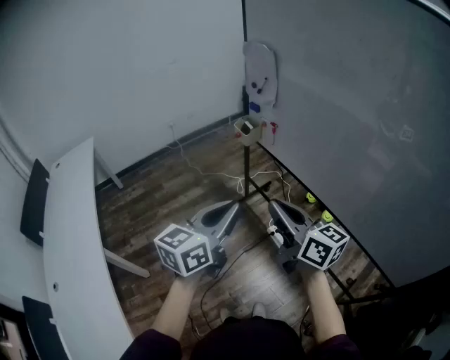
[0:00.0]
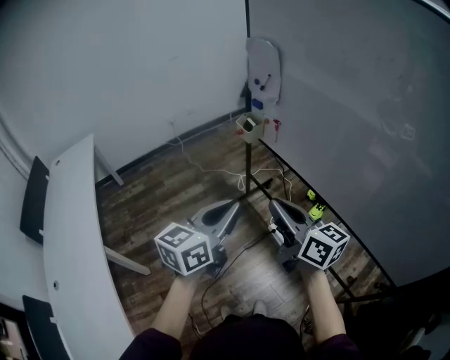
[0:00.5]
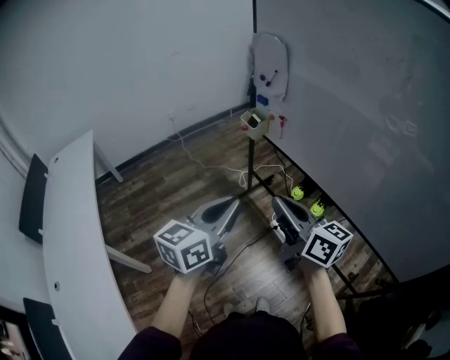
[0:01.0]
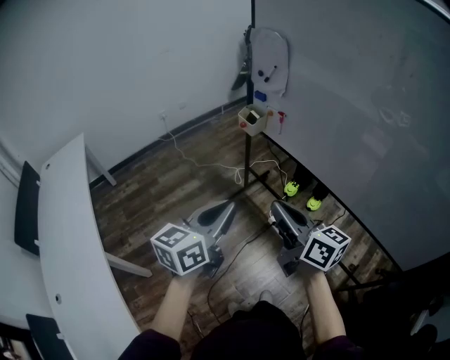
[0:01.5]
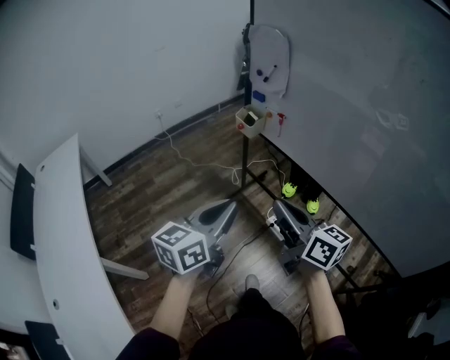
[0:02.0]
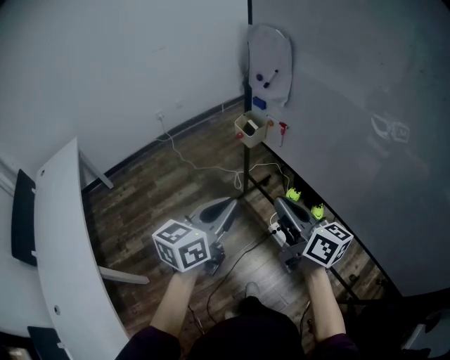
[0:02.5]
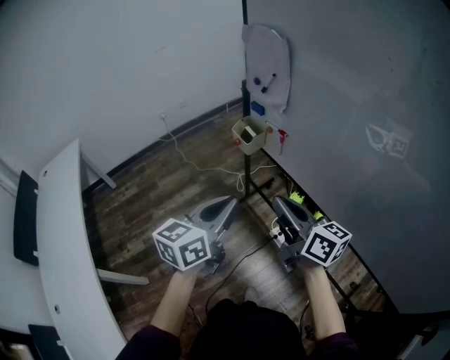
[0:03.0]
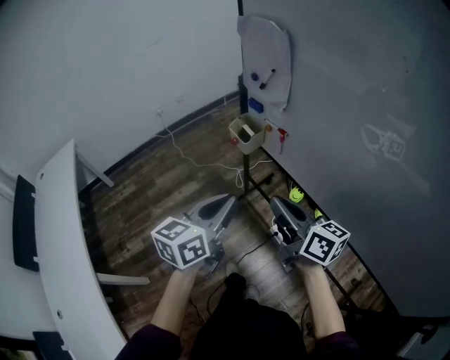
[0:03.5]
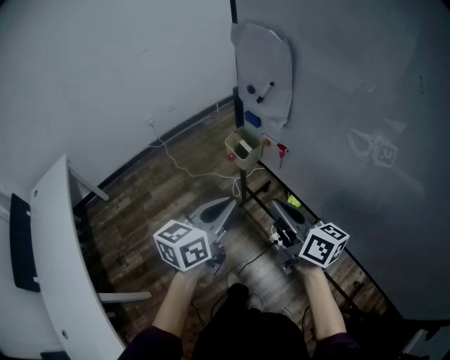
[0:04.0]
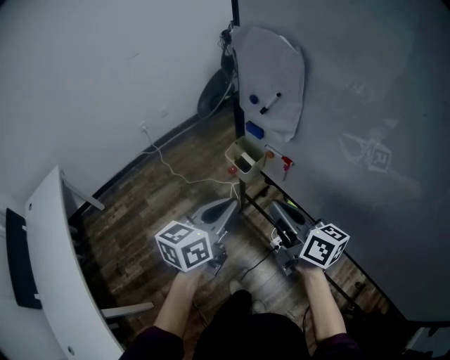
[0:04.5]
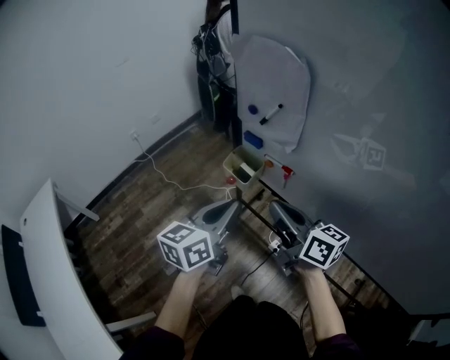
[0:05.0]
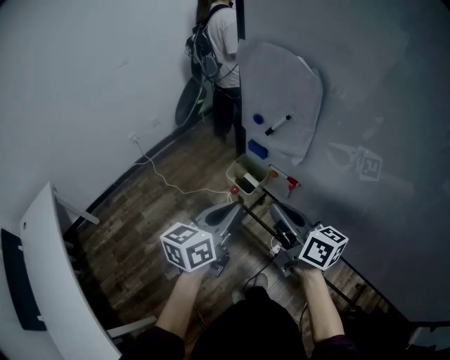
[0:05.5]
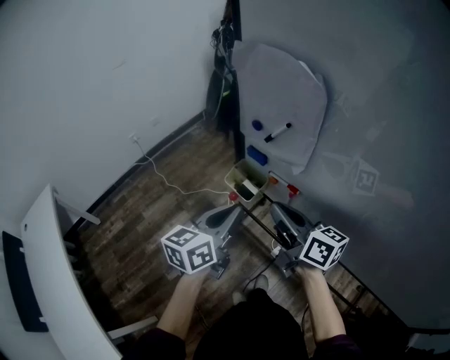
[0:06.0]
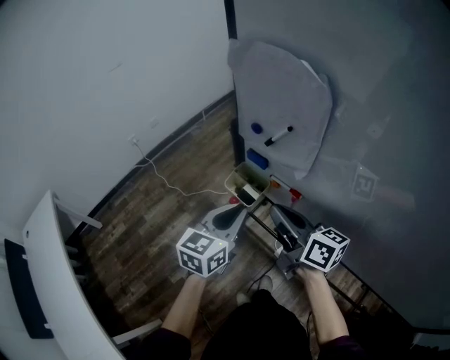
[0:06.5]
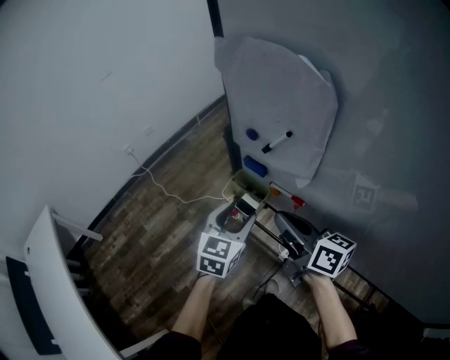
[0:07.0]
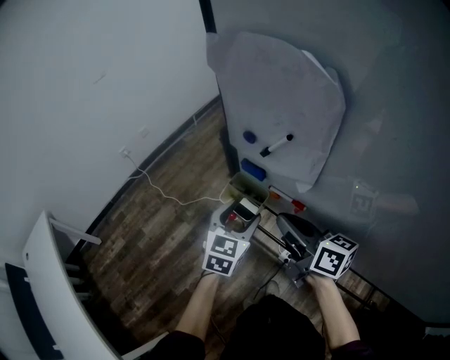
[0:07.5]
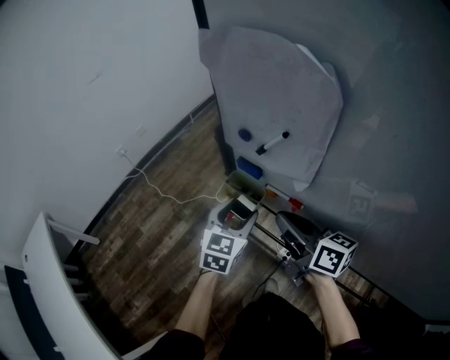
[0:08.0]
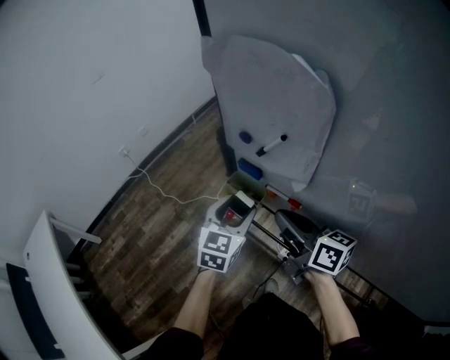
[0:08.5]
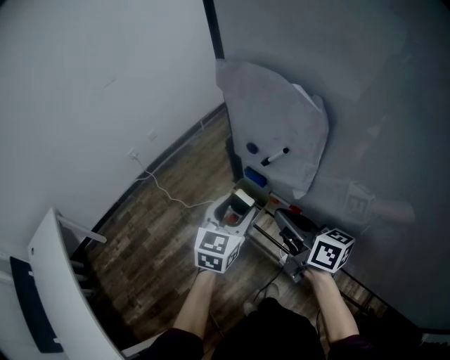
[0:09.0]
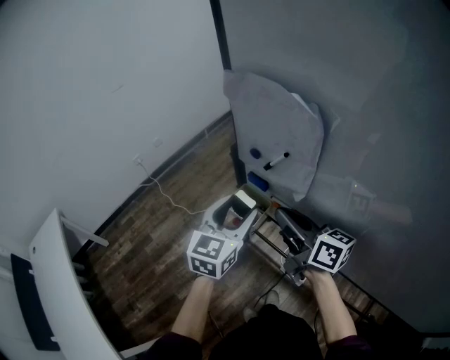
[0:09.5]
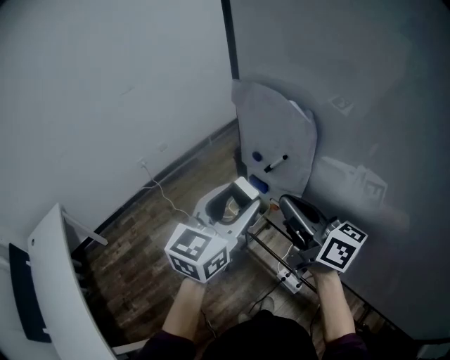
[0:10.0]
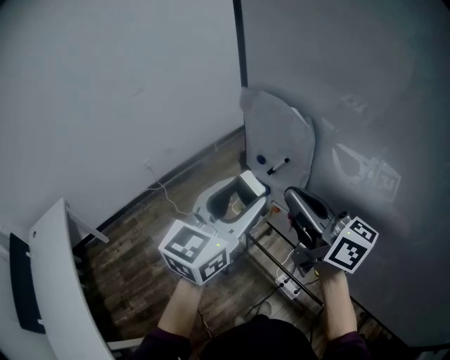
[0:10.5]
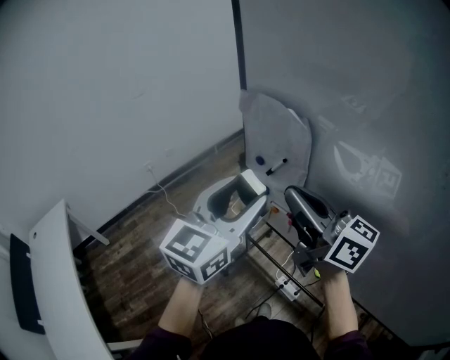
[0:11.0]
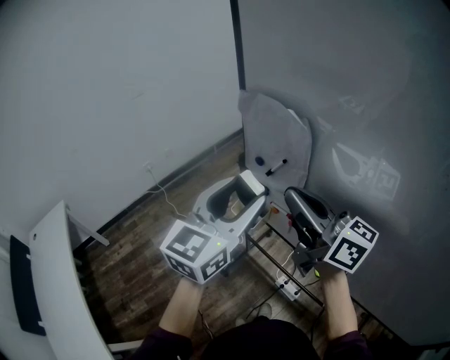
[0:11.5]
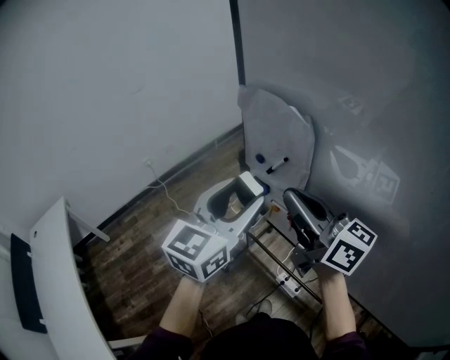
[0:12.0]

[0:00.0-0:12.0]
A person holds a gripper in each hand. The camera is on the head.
0:00.0 to 0:02.0: The right gripper goes roughly 5 cm to the left. Meanwhile the left gripper goes roughly 10 cm to the left and forward.
0:02.0 to 0:04.0: Both grippers move forward, about 25 cm.
0:04.0 to 0:06.0: Both grippers move forward, about 15 cm.
0:06.0 to 0:08.0: The left gripper travels downward and forward by some 15 cm, turns by approximately 30 degrees, and opens its fingers, while the right gripper moves downward, roughly 5 cm.
0:08.0 to 0:10.0: Both grippers move upward, roughly 20 cm. The left gripper swivels some 20 degrees.
0:10.0 to 0:12.0: The right gripper shifts about 5 cm upward.

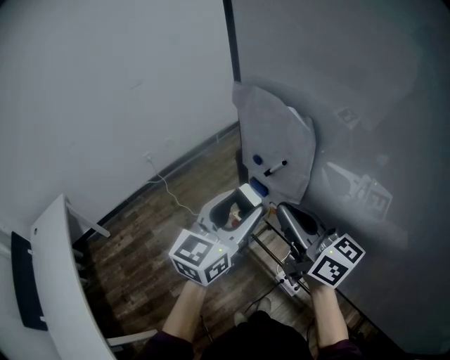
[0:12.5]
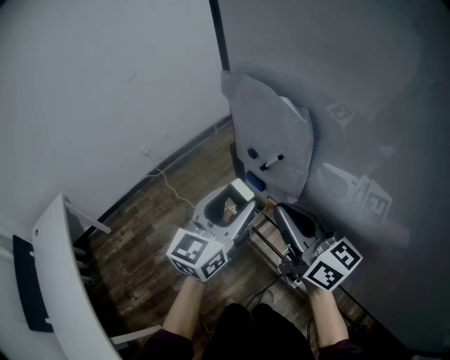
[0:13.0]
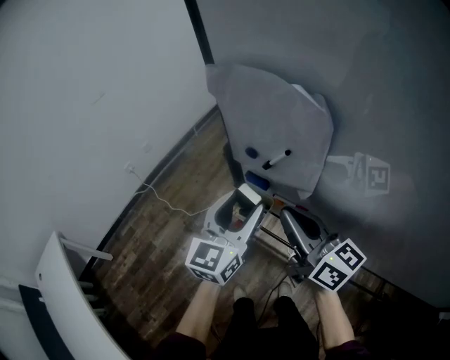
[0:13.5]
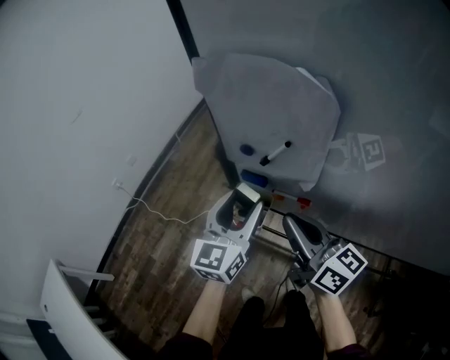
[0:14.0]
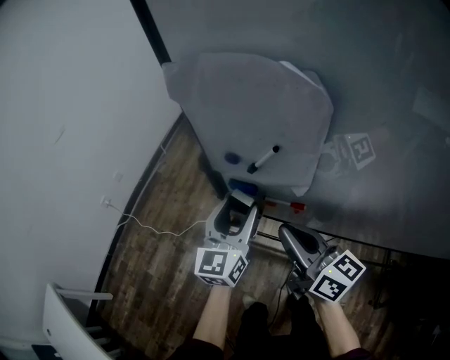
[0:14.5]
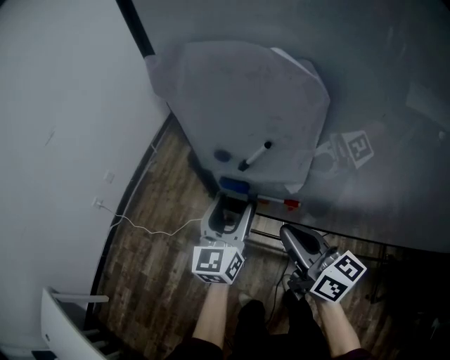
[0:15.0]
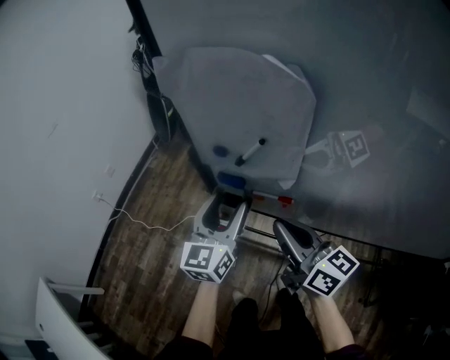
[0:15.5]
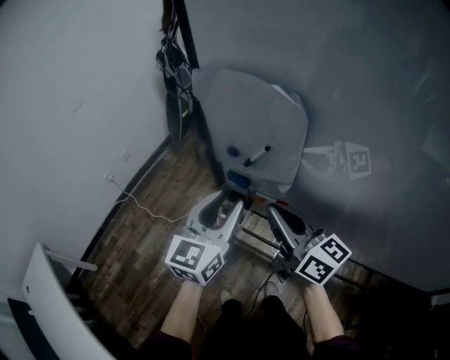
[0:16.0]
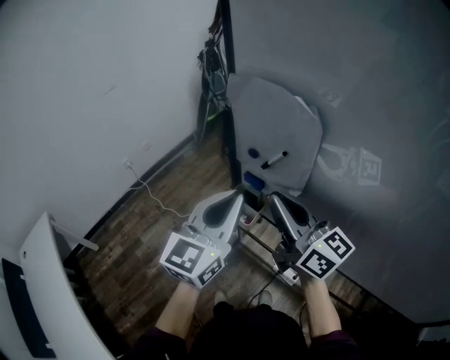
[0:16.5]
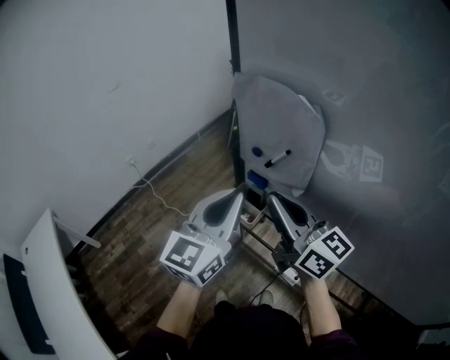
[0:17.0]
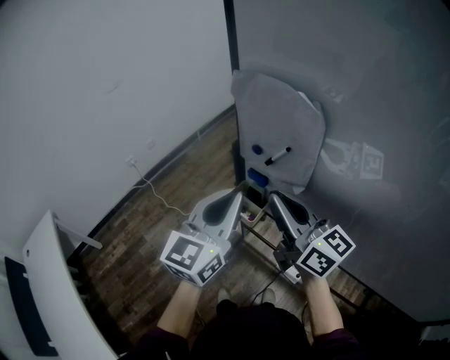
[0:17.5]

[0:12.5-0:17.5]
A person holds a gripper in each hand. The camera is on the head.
0:12.5 to 0:15.0: The right gripper is displaced downward by roughly 15 cm, and swivels some 30 degrees. Meanwhile the left gripper travels downward and forward by about 20 cm.
0:15.0 to 0:17.5: The left gripper moves upward and backward, about 20 cm, and closes up; the right gripper shifts some 15 cm upward, and swivels roughly 20 degrees.

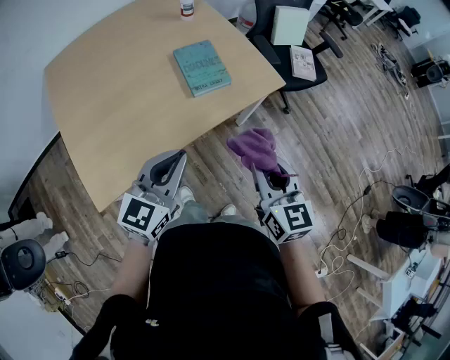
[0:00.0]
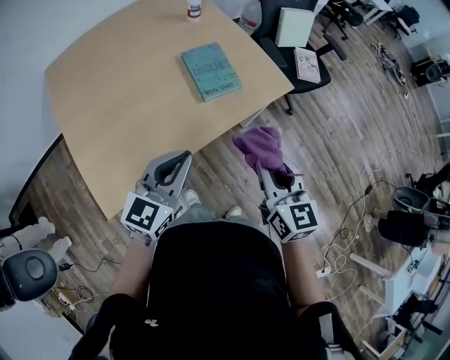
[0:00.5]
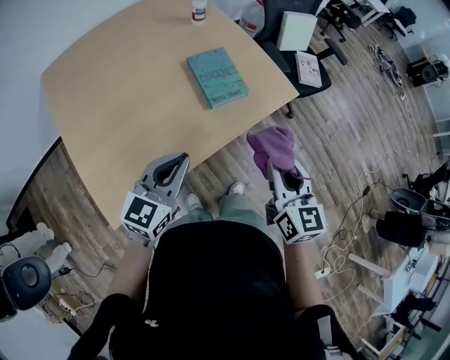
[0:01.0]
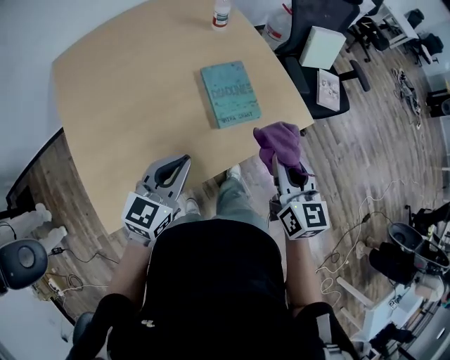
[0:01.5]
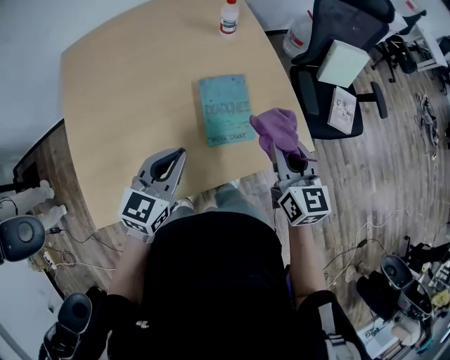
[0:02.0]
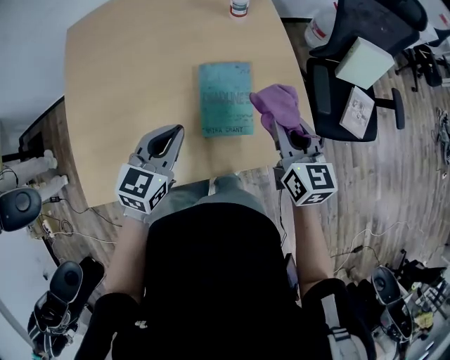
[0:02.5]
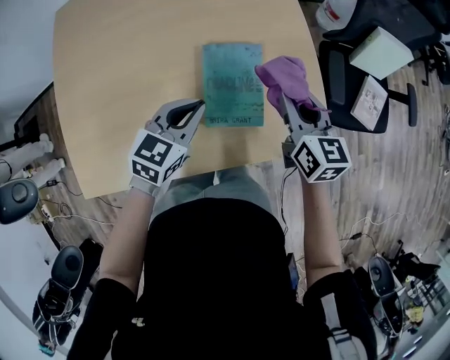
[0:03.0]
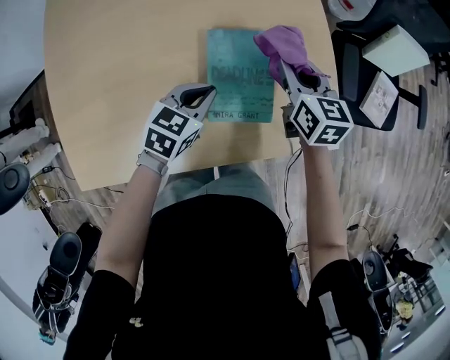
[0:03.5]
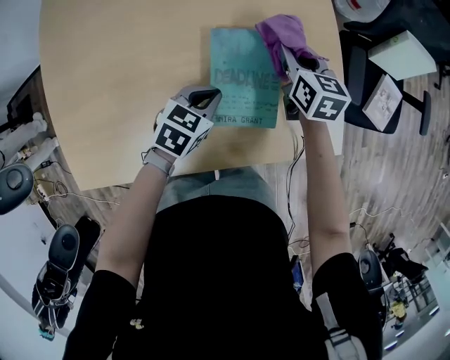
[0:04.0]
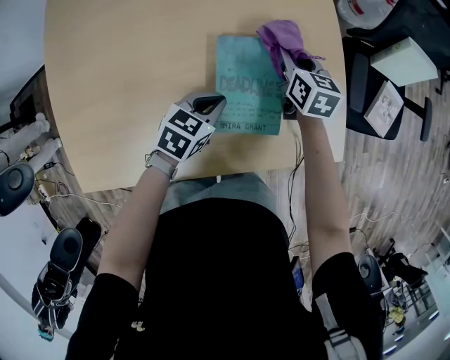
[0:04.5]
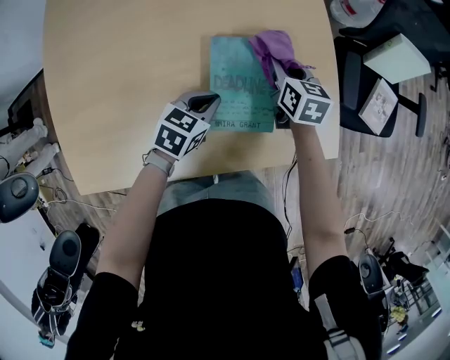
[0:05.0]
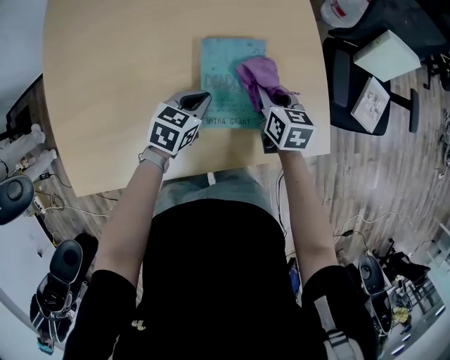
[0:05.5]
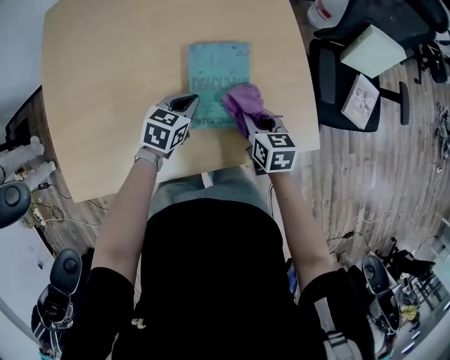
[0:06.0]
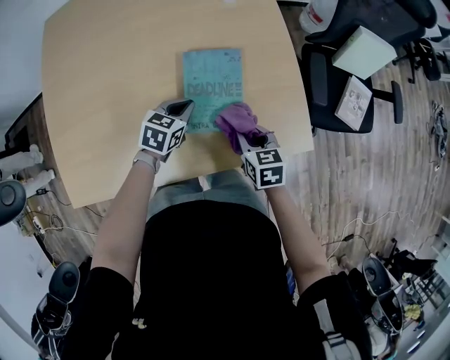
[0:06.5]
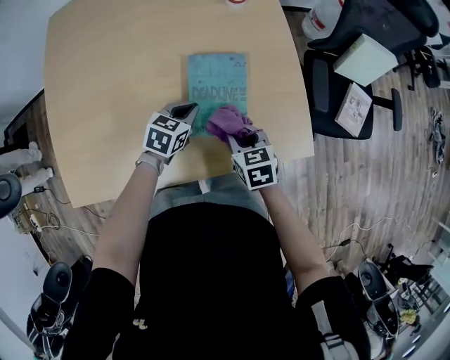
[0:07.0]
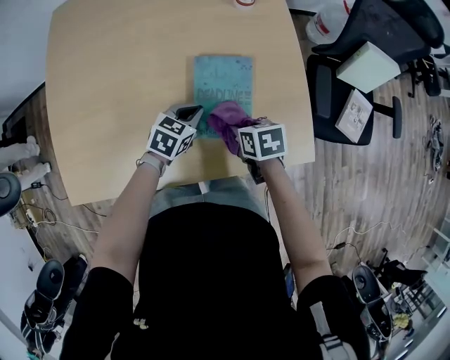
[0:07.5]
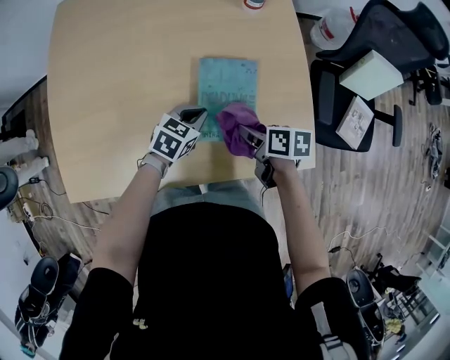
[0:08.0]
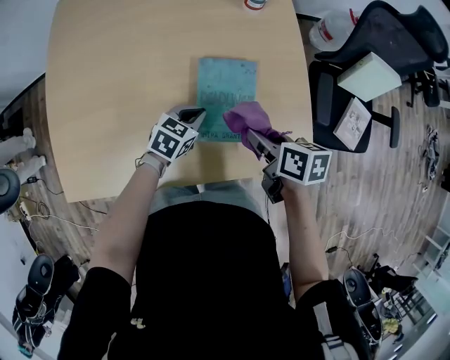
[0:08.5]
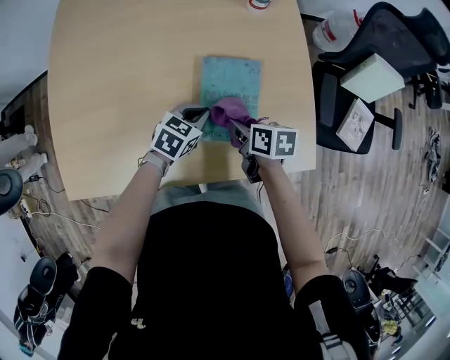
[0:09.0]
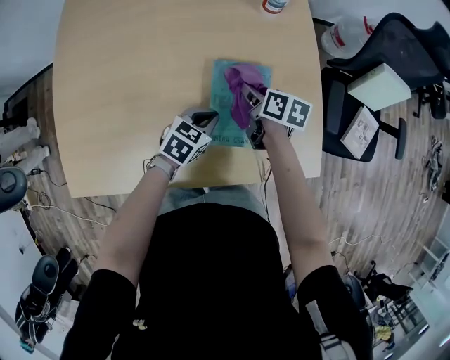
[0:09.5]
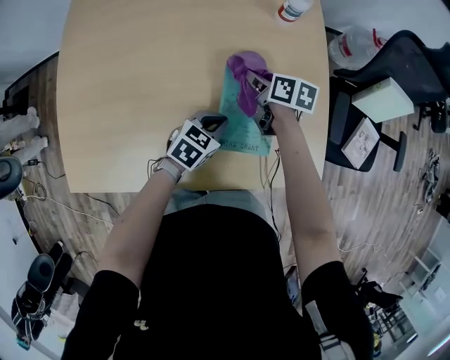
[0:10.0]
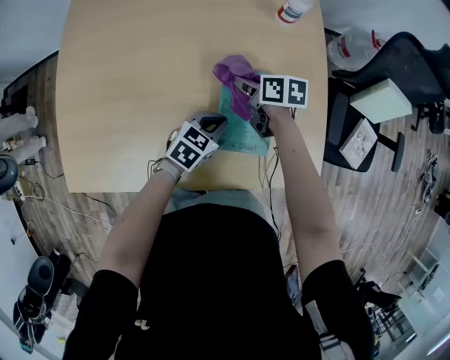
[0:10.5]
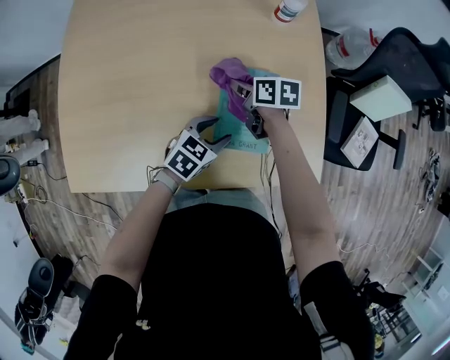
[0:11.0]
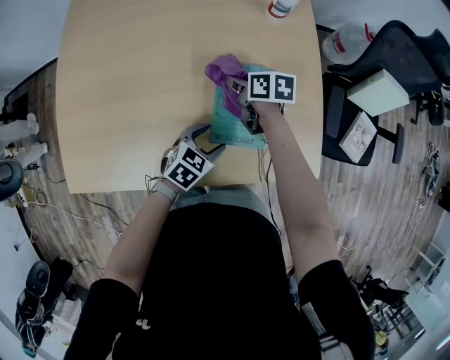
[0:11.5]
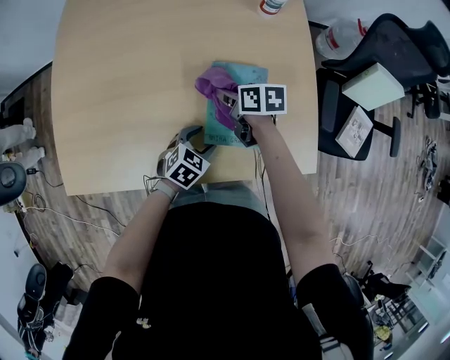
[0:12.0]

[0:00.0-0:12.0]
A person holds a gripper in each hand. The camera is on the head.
0:00.0 to 0:02.0: Both grippers travel together forward, roughly 30 cm.
0:02.0 to 0:04.0: The right gripper shifts approximately 30 cm forward and downward, and changes its angle by about 20 degrees. The left gripper shifts about 25 cm downward and forward, and turns by some 30 degrees.
0:04.0 to 0:06.0: The right gripper shifts roughly 15 cm backward.
0:06.0 to 0:08.0: The right gripper turns by some 30 degrees.
0:08.0 to 0:10.0: The right gripper heads forward, covering some 20 cm.
0:10.0 to 0:12.0: The grippers both shift backward by roughly 10 cm. The left gripper opens.
